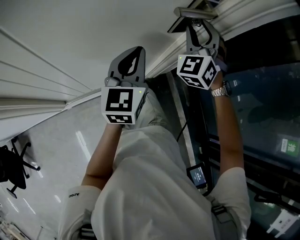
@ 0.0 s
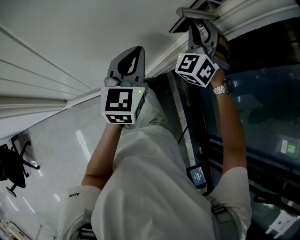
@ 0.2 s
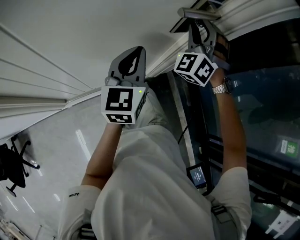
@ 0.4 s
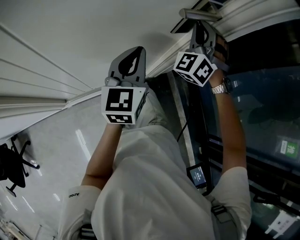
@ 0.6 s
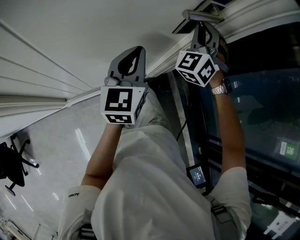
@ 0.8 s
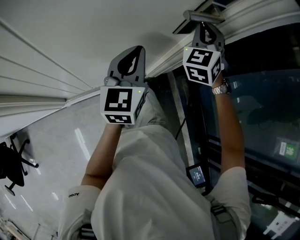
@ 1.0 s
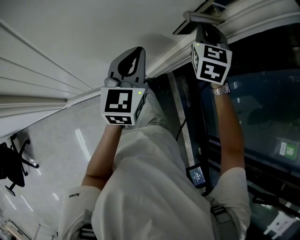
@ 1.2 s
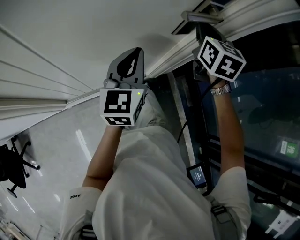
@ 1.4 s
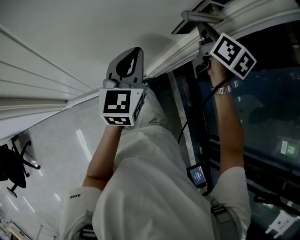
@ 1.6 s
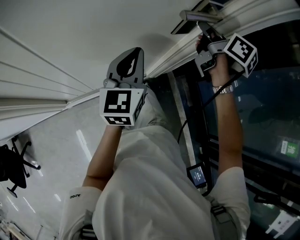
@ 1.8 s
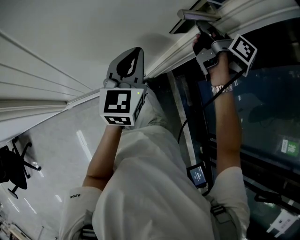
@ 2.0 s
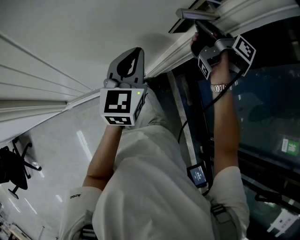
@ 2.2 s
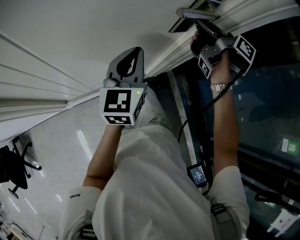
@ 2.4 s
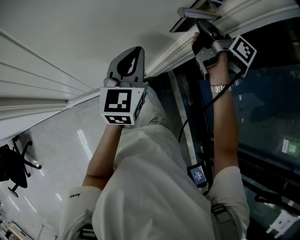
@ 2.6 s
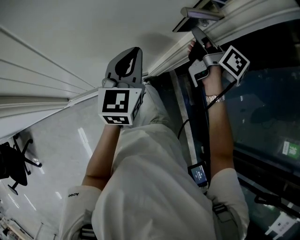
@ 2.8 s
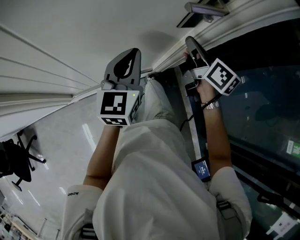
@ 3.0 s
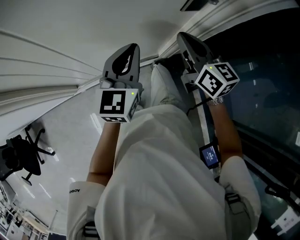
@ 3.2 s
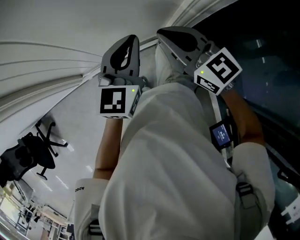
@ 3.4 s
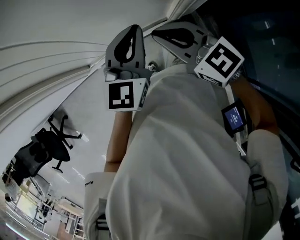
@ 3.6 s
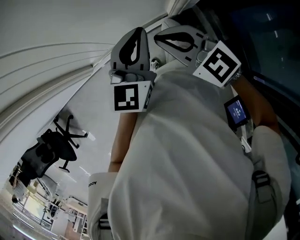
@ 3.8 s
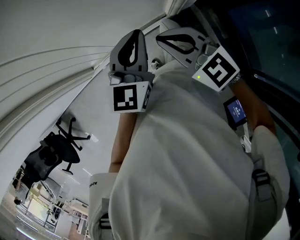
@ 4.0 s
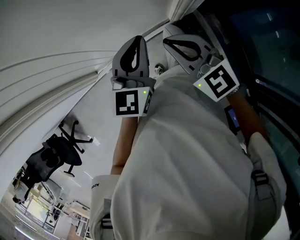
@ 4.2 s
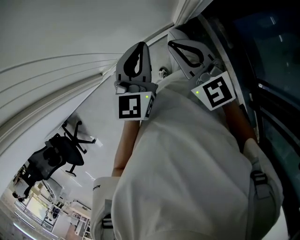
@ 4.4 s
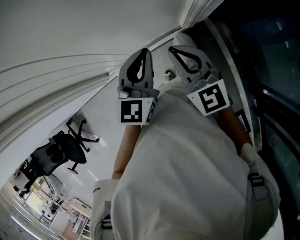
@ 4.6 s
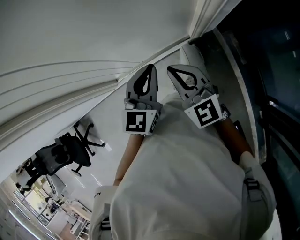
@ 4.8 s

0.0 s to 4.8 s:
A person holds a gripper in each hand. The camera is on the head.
0.0 to 1.6 s: The right gripper twists approximately 80 degrees clockwise, seen from behind, and closes its fingers.
1.6 to 3.2 s: The left gripper moves some 5 cm. The right gripper travels backward, downward and to the left by roughly 15 cm, and turns by roughly 20 degrees.
3.2 to 4.8 s: The left gripper heads backward, covering some 10 cm. The right gripper moves backward, to the left and downward, some 15 cm, and turns by roughly 30 degrees.

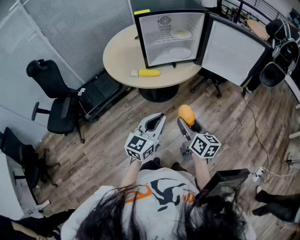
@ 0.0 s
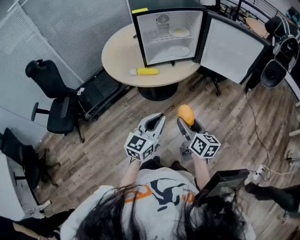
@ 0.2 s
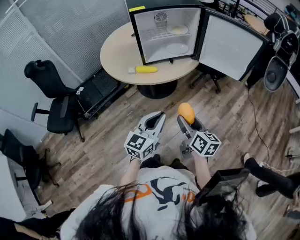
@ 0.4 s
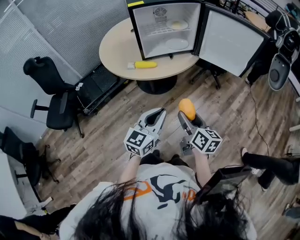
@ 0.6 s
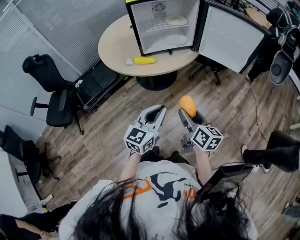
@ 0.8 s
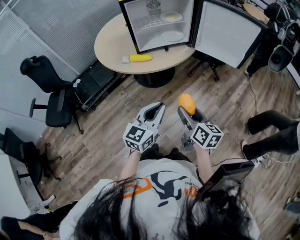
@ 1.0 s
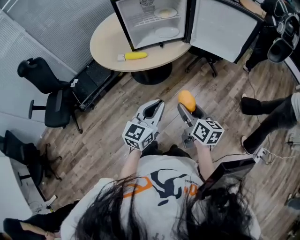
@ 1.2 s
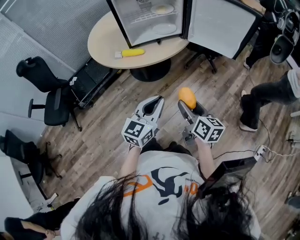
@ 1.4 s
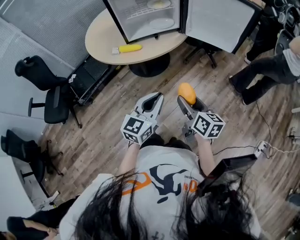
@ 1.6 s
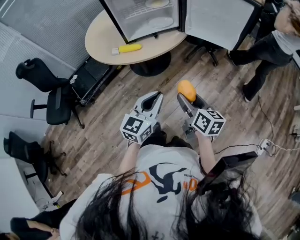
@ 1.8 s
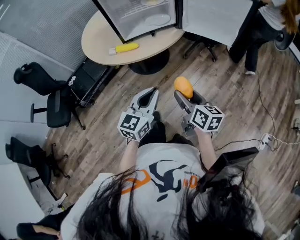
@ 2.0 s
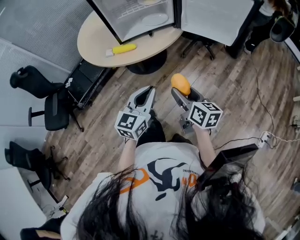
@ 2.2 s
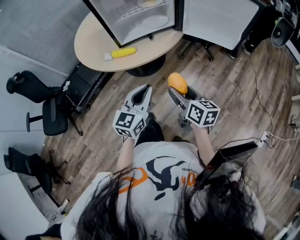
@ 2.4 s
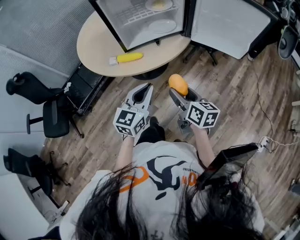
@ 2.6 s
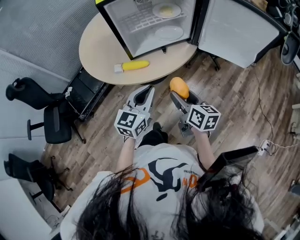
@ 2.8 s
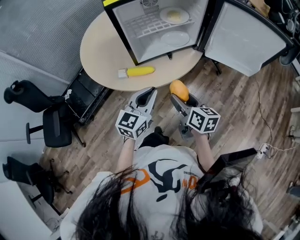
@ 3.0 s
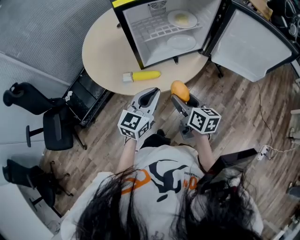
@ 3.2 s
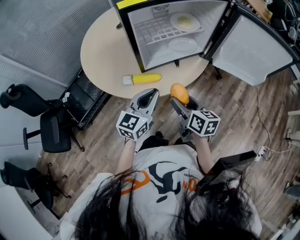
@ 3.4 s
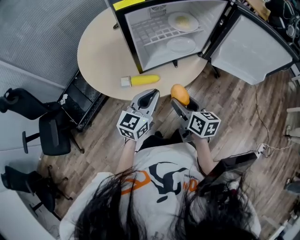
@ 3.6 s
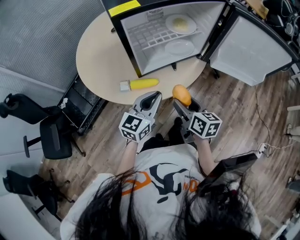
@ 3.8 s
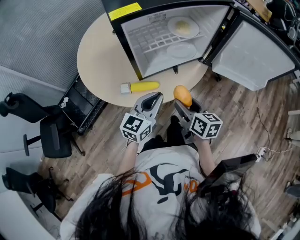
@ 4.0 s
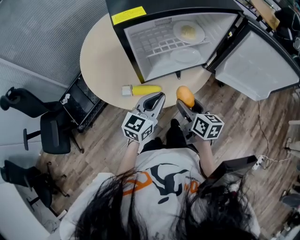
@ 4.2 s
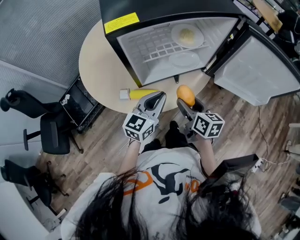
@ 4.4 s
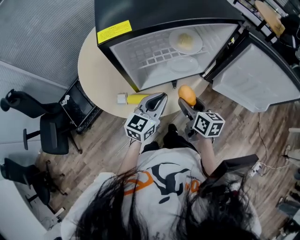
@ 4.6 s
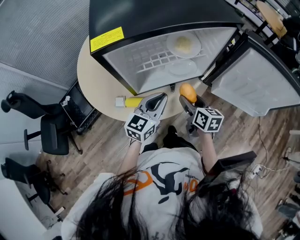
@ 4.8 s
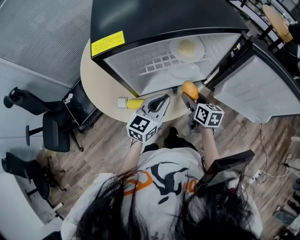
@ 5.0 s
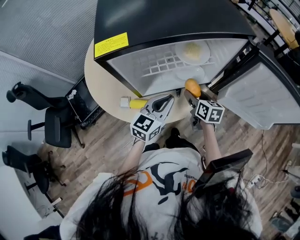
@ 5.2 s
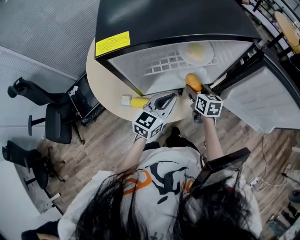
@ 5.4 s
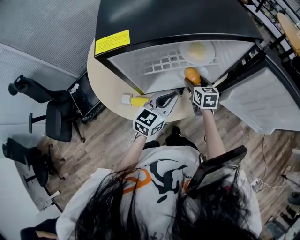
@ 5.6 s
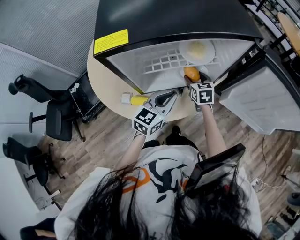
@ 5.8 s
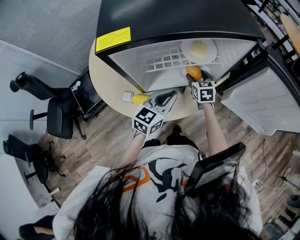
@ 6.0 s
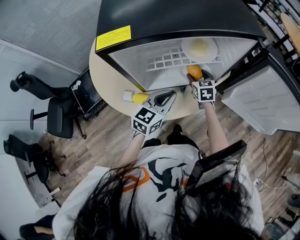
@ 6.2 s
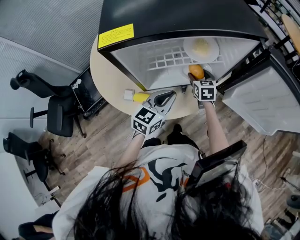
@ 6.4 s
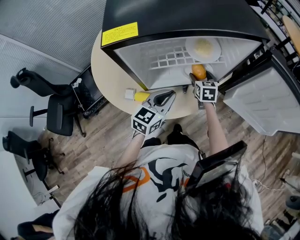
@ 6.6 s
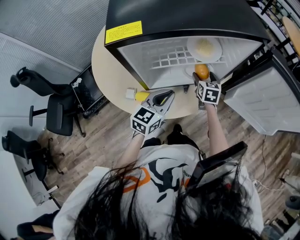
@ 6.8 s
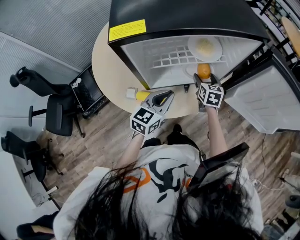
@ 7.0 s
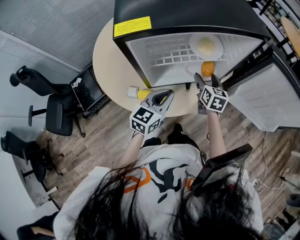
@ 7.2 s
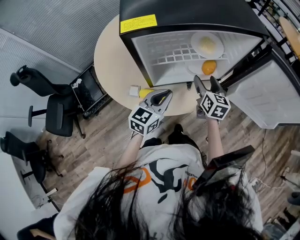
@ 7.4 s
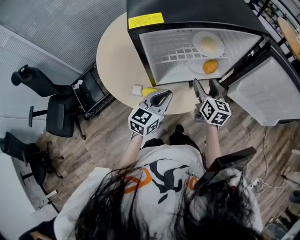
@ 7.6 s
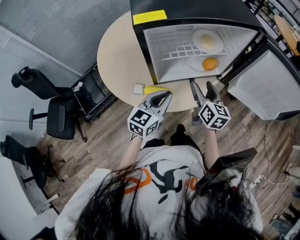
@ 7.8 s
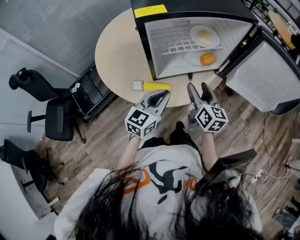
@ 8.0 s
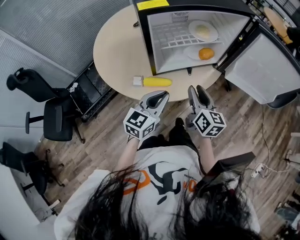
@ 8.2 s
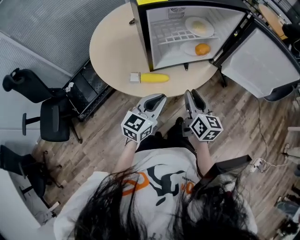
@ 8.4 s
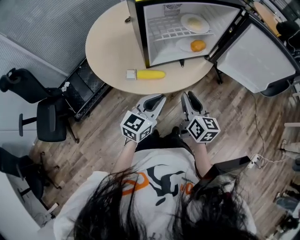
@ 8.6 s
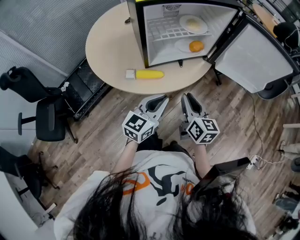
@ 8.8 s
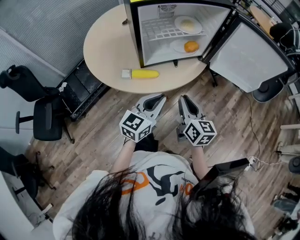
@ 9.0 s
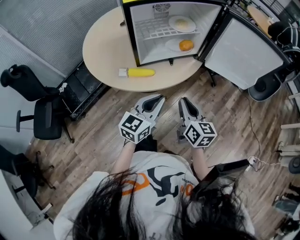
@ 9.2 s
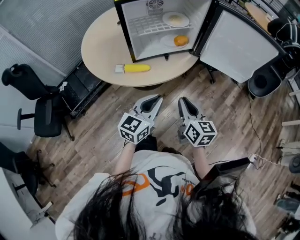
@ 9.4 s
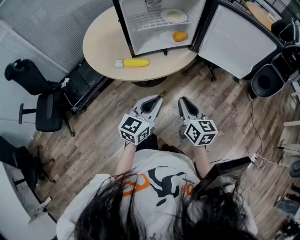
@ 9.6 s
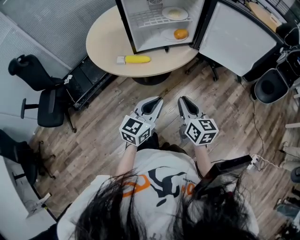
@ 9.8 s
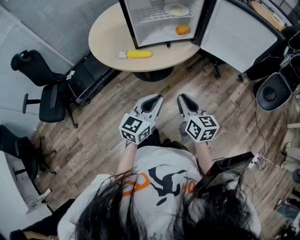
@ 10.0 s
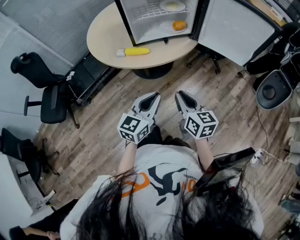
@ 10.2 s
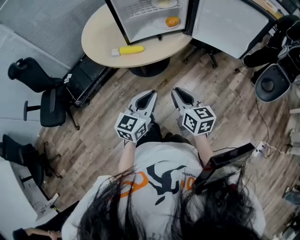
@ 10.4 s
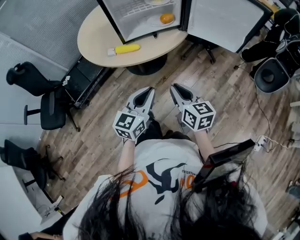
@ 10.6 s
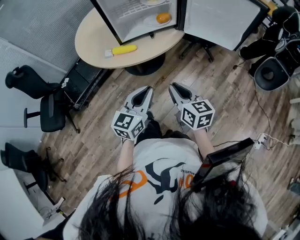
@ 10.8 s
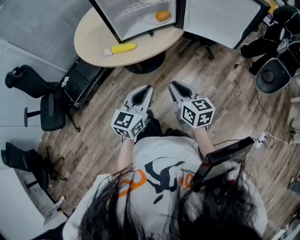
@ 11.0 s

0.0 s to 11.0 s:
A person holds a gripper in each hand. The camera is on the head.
0.0 to 1.6 s: The grippers both shift to the right by approximately 10 cm.
1.6 to 3.2 s: Both grippers travel together forward and to the left, about 30 cm.
3.2 to 4.8 s: Both grippers travel together forward, some 15 cm.
4.8 to 6.2 s: The right gripper goes approximately 15 cm forward and downward, and turns by some 30 degrees.
6.2 to 7.8 s: The right gripper moves backward and upward, roughly 20 cm, and turns by about 30 degrees, while the left gripper moves backward and to the left, some 10 cm.
7.8 to 9.4 s: The right gripper heads backward, covering roughly 25 cm, and closes up. Meanwhile the left gripper travels backward and to the right by some 20 cm.
9.4 to 11.0 s: The right gripper moves backward, some 10 cm. The left gripper shifts some 10 cm backward and to the right.

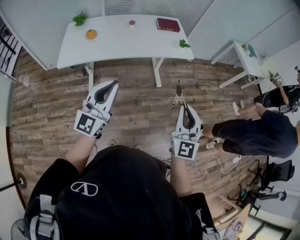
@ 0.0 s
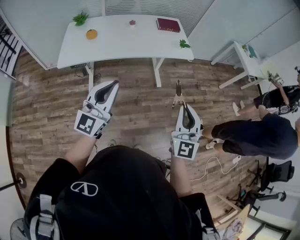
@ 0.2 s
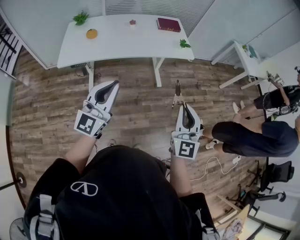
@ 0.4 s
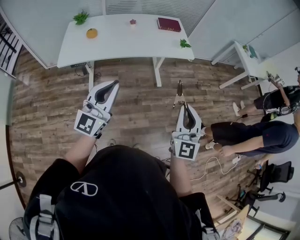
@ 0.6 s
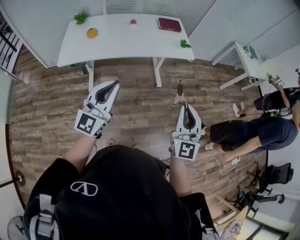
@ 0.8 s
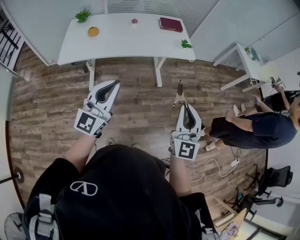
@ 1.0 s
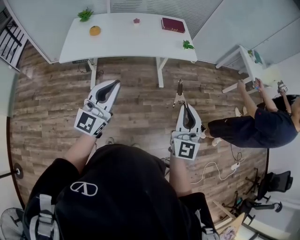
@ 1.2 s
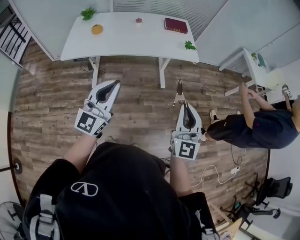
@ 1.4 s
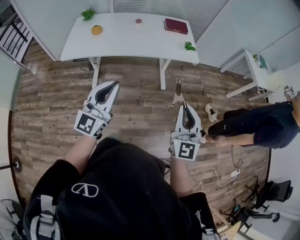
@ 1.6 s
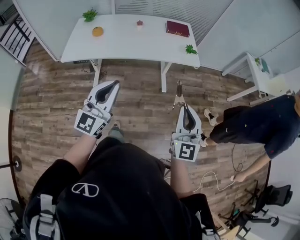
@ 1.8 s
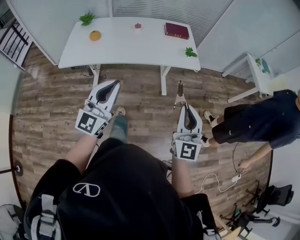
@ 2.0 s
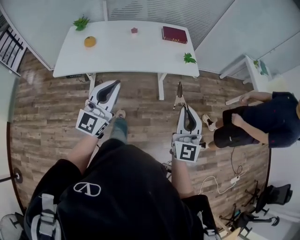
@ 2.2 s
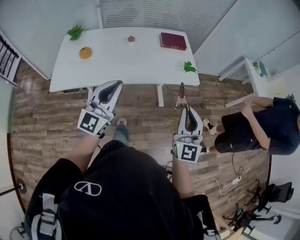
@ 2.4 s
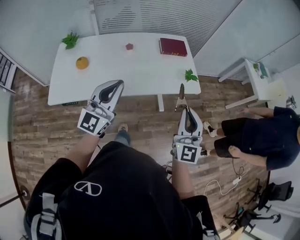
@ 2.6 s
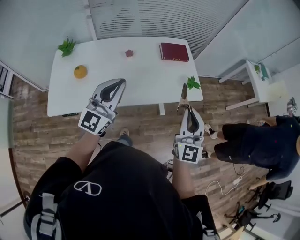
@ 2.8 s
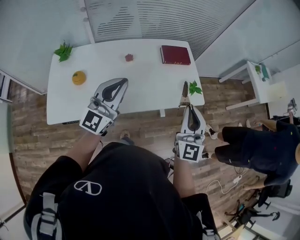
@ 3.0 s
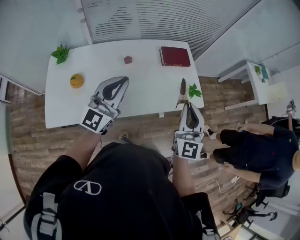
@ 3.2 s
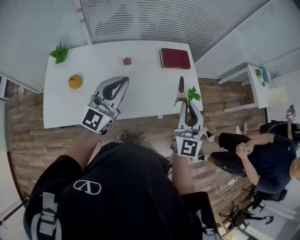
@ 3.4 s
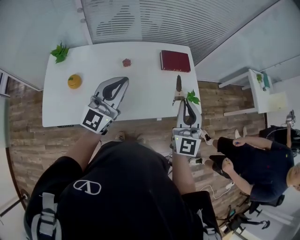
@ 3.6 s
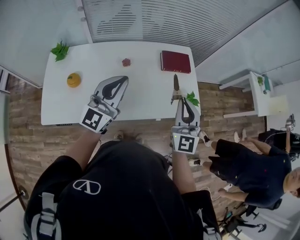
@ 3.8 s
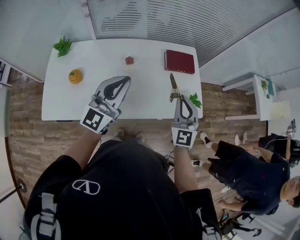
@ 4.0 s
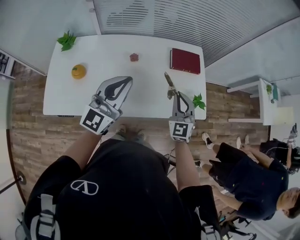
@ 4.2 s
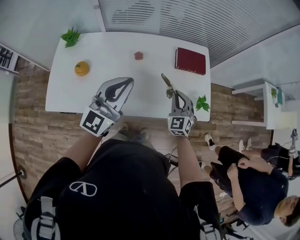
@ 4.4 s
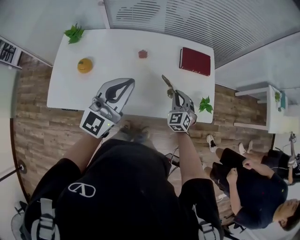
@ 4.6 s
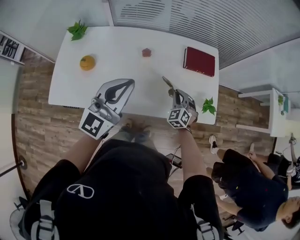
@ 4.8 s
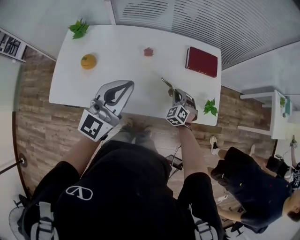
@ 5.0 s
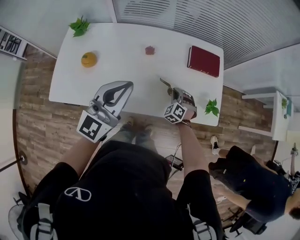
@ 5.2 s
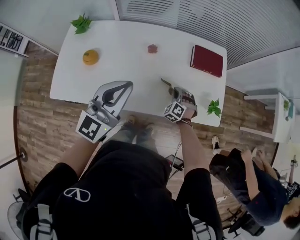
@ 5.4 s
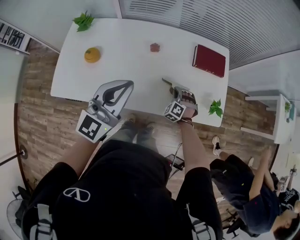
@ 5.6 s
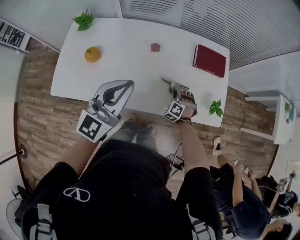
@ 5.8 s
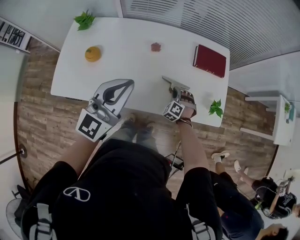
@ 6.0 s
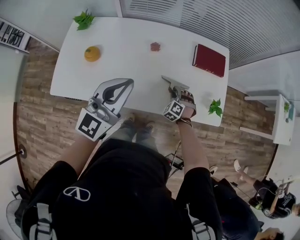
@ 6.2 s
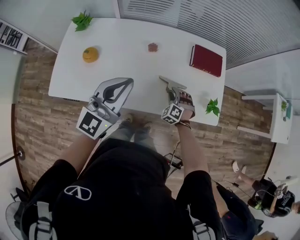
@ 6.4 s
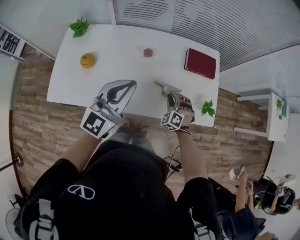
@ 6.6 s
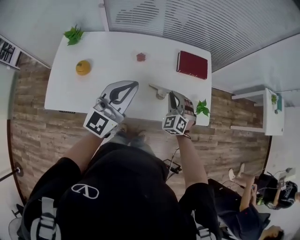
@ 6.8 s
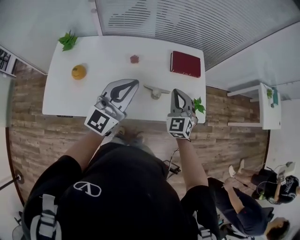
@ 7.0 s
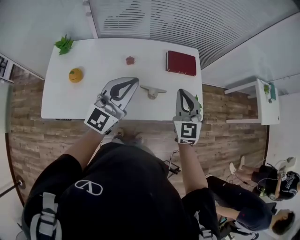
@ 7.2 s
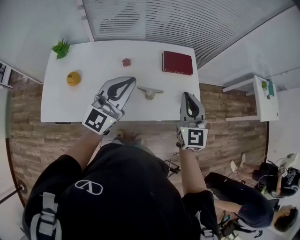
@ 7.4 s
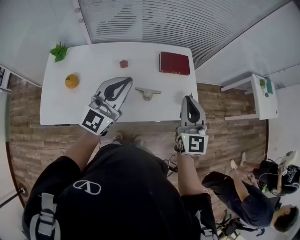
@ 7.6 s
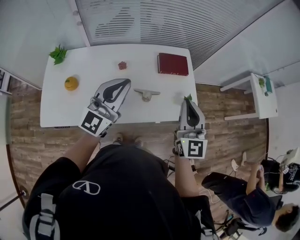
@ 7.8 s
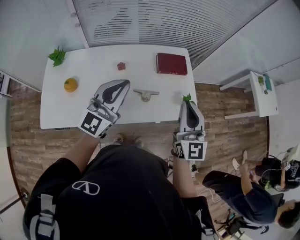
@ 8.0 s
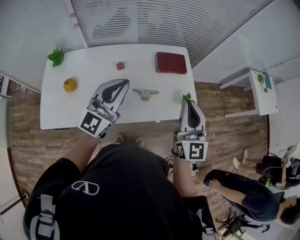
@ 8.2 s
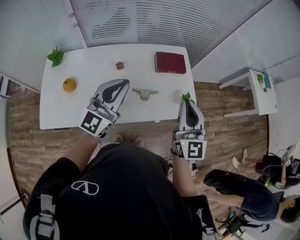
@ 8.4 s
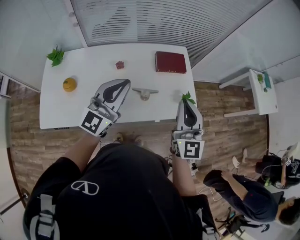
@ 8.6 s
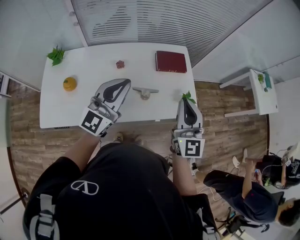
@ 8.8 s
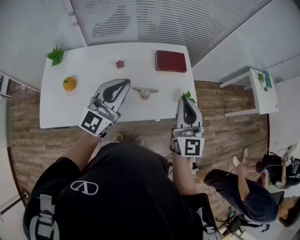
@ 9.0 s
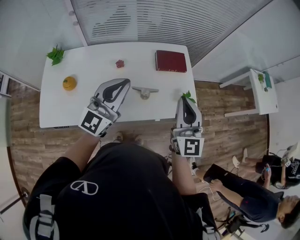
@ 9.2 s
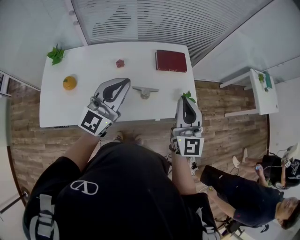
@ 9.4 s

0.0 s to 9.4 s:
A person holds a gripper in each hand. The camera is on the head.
0.0 to 1.6 s: The grippers both shift to the right by some 5 cm.
1.6 to 3.2 s: Both grippers are carried forward, about 50 cm.
3.2 to 4.8 s: The right gripper shifts approximately 35 cm downward and forward, and tips its fingers downward by some 40 degrees; the left gripper travels downward by some 5 cm.
4.8 to 6.2 s: The right gripper moves downward, some 10 cm, turns by about 30 degrees, and opens.
6.2 to 7.8 s: The right gripper moves upward, some 40 cm, angles its fingers upward, by some 50 degrees, and closes up. Meanwhile the left gripper travels upward and to the right by about 10 cm.
7.8 to 9.4 s: There are only small adjustments of the grippers.
